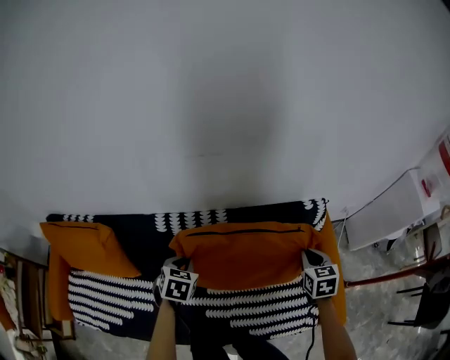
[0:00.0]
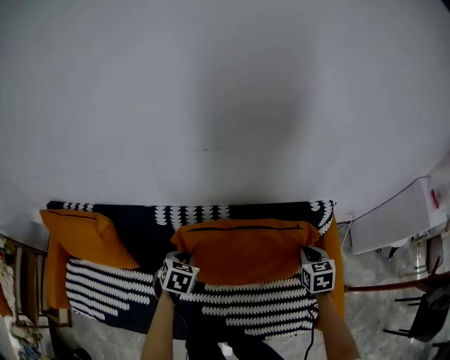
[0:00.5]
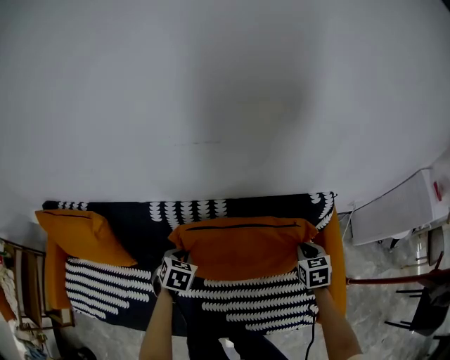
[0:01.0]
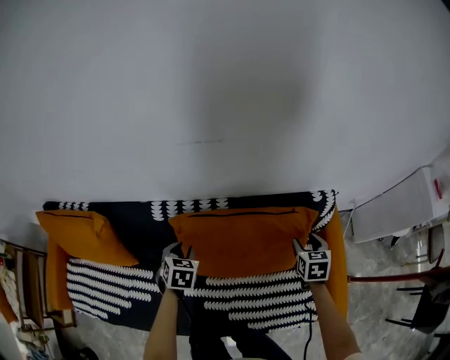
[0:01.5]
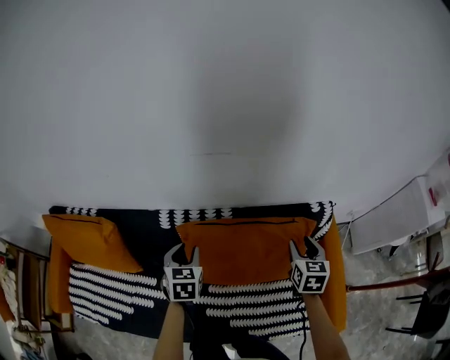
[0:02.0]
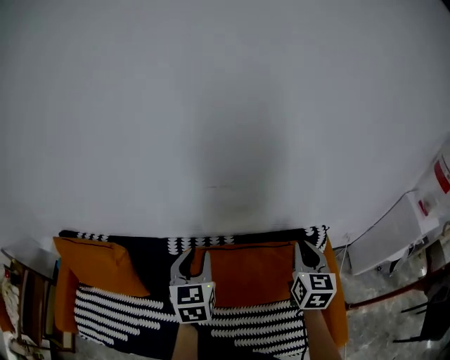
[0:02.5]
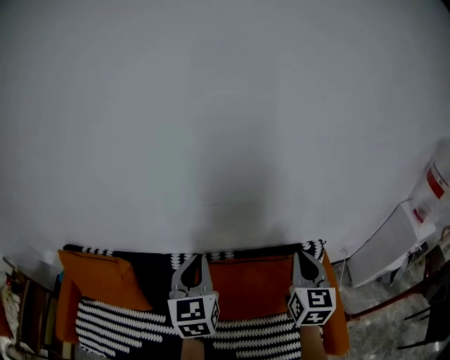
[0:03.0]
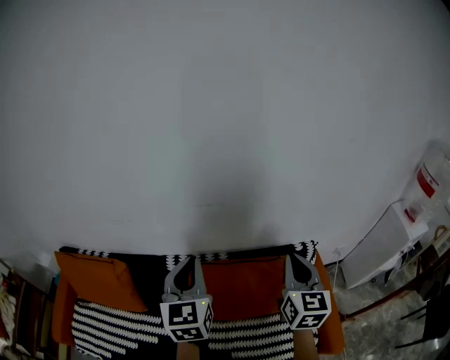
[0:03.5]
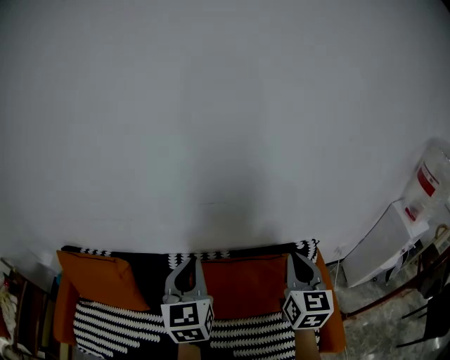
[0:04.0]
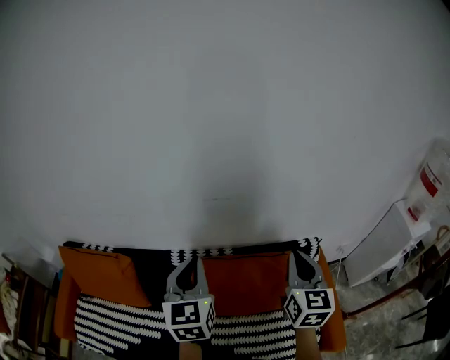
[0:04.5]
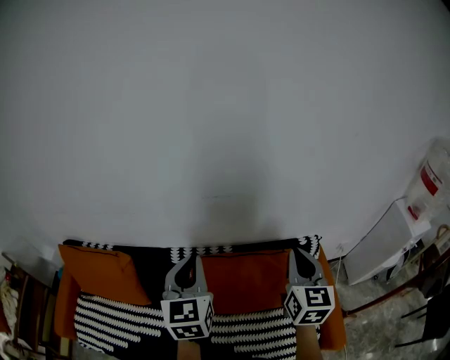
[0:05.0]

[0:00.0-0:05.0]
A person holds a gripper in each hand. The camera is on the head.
0:00.0 to 0:02.5: The right gripper goes roughly 20 cm upward and to the left, turns by about 30 degrees, and opens, then closes again. The left gripper moves upward, approximately 20 cm, and tilts its fingers approximately 30 degrees upward.
0:02.5 to 0:05.0: The grippers both shift upward and backward by roughly 15 cm. The left gripper closes up.

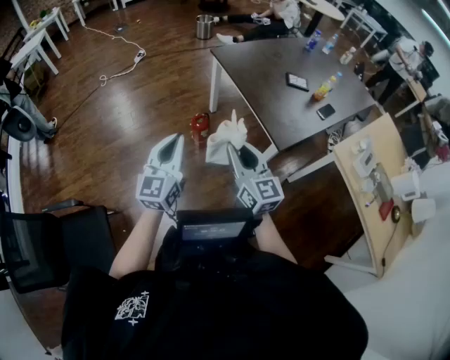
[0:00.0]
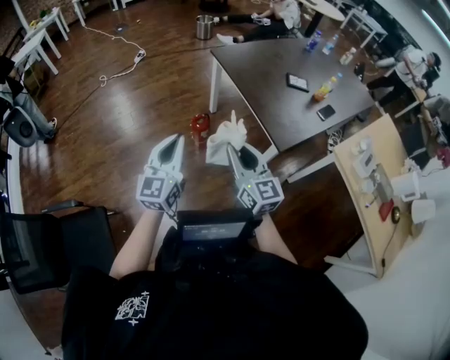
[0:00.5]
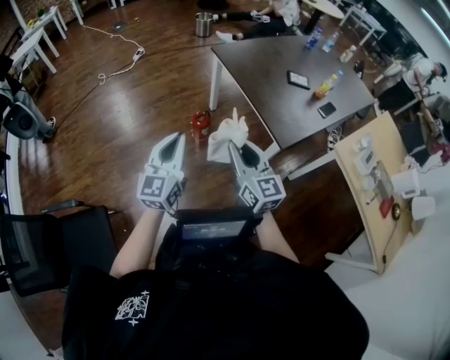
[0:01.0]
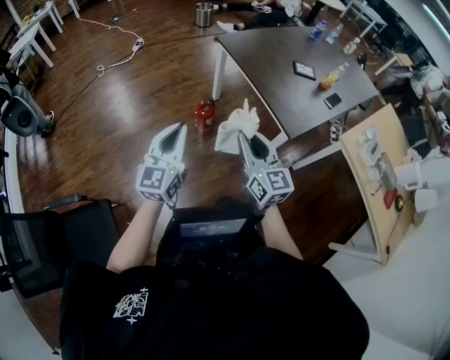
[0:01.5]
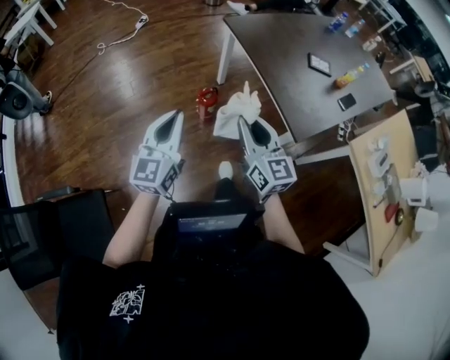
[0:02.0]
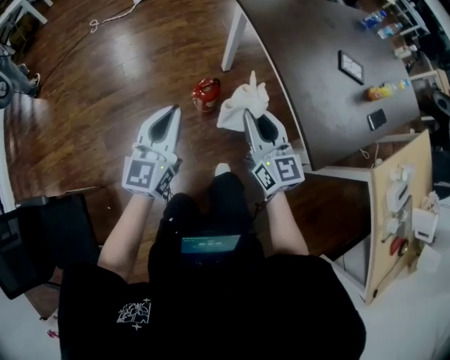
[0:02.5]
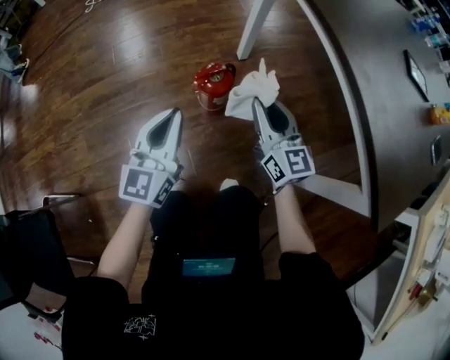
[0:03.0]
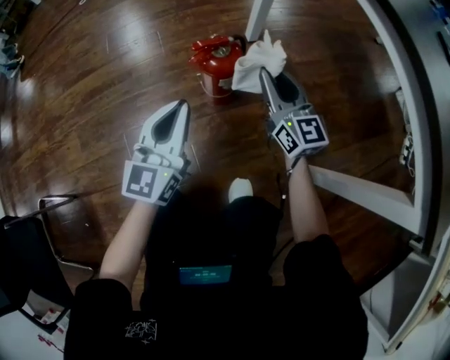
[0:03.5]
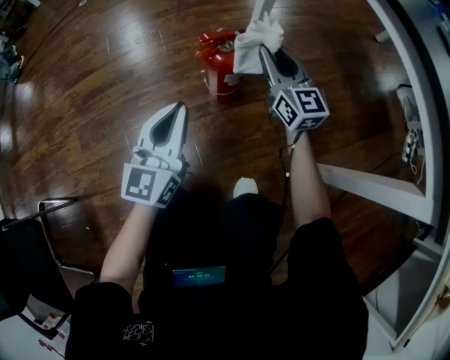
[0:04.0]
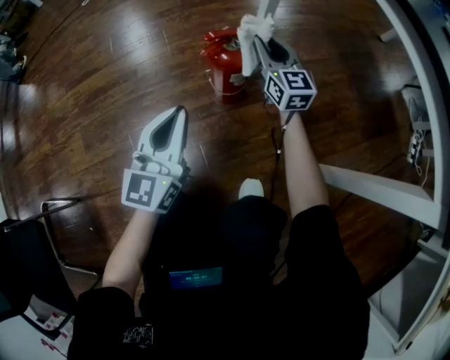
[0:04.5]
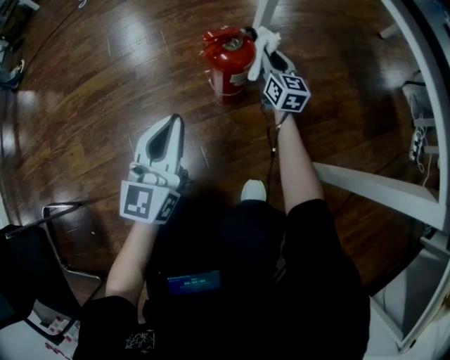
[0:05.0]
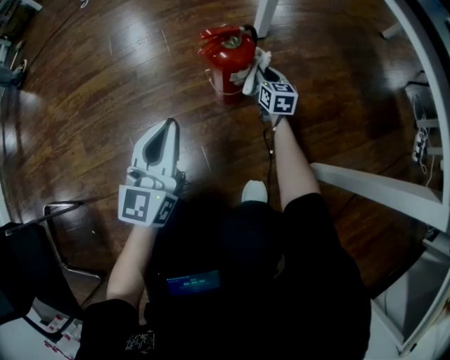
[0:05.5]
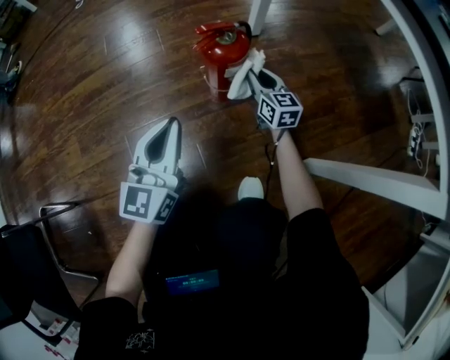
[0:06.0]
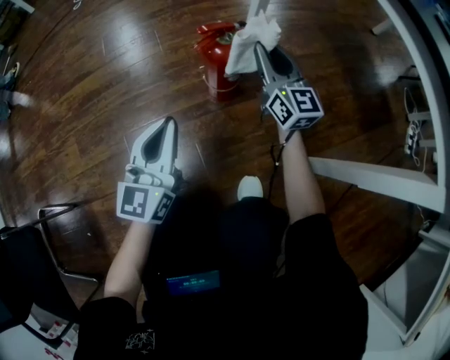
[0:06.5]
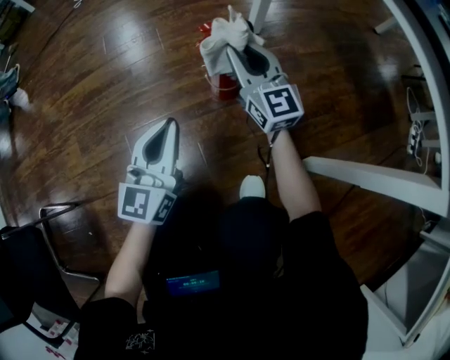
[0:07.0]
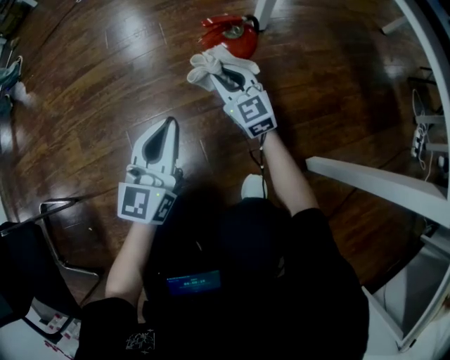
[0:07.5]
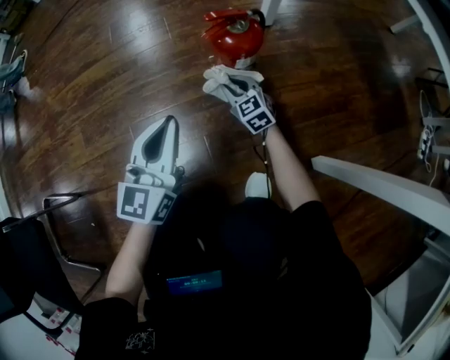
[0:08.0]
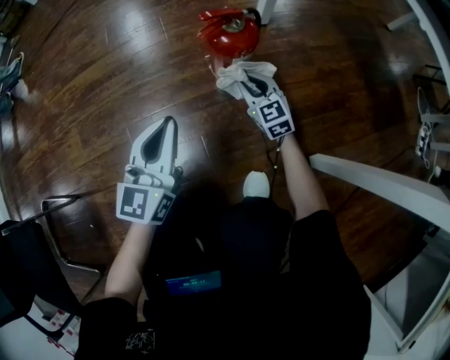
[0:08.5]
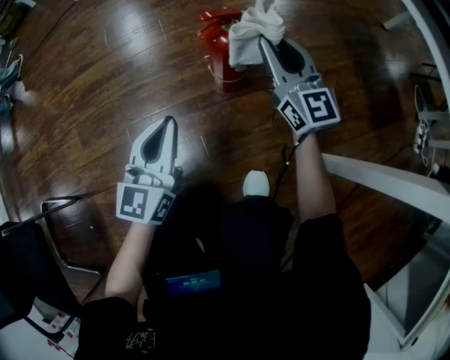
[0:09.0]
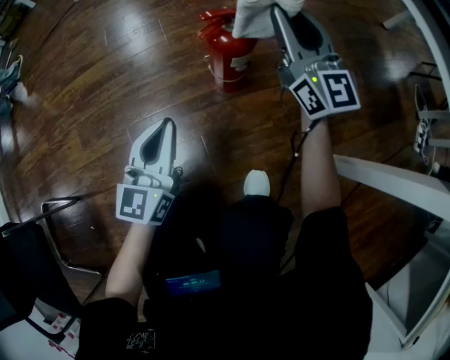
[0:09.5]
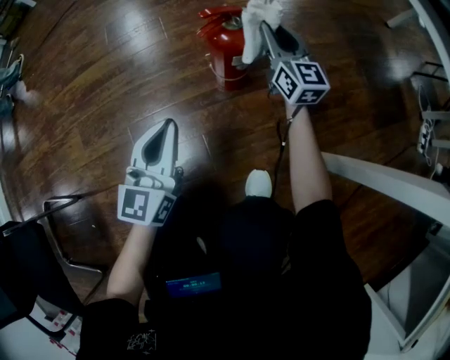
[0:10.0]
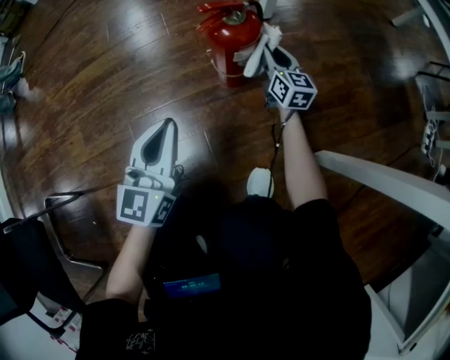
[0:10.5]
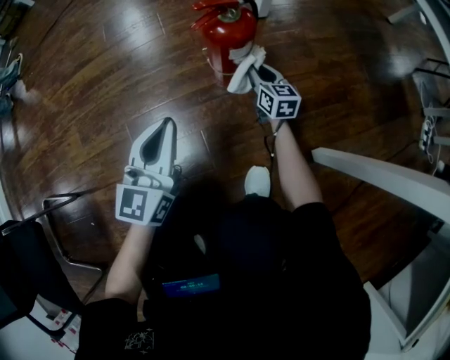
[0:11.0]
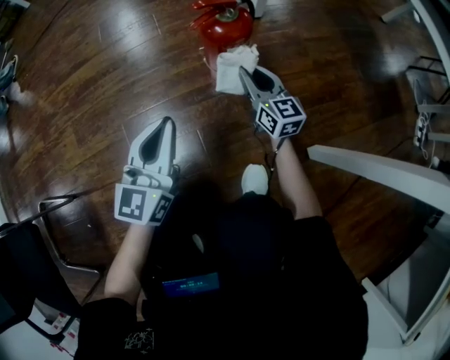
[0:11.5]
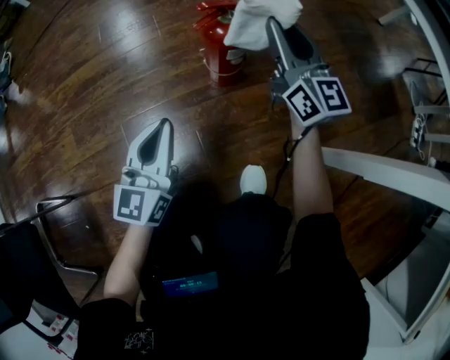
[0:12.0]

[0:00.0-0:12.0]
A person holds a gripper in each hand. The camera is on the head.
0:00.0 to 0:02.0: The right gripper goes approximately 10 cm forward, while the left gripper goes about 10 cm forward and downward.
0:02.0 to 0:04.0: The right gripper goes some 70 cm downward and forward. The left gripper goes some 60 cm downward.
0:04.0 to 0:06.0: The right gripper moves downward, about 20 cm.
0:06.0 to 0:08.0: The right gripper is displaced to the left by approximately 10 cm, travels upward and back again, approximately 15 cm each way, and swivels about 30 degrees.
0:08.0 to 0:10.0: The right gripper heads upward and to the right, covering roughly 25 cm, and points its fingers about 30 degrees further upward.
0:10.0 to 0:12.0: The right gripper shifts approximately 5 cm backward, and reaches roughly 20 cm downward, then returns.

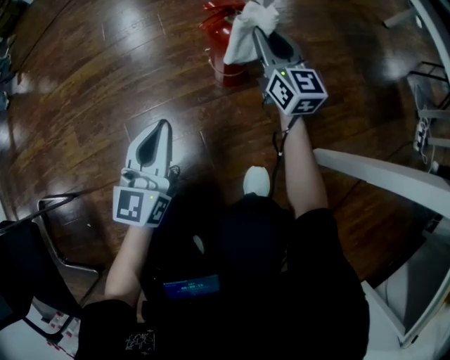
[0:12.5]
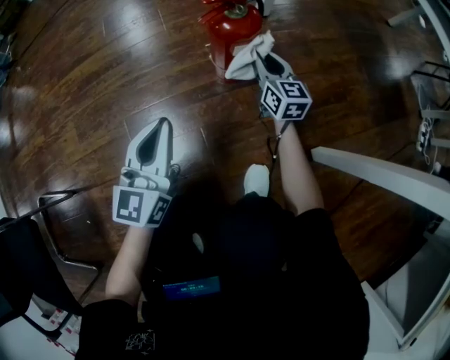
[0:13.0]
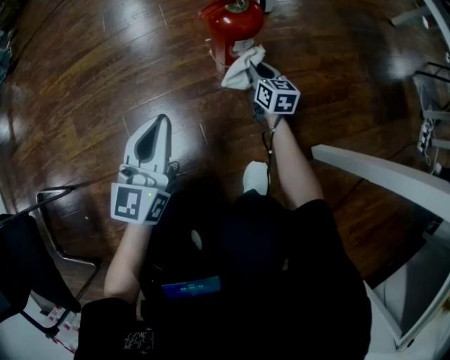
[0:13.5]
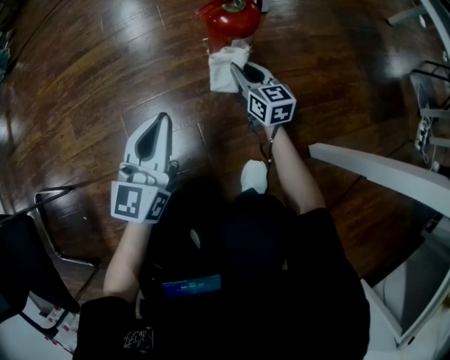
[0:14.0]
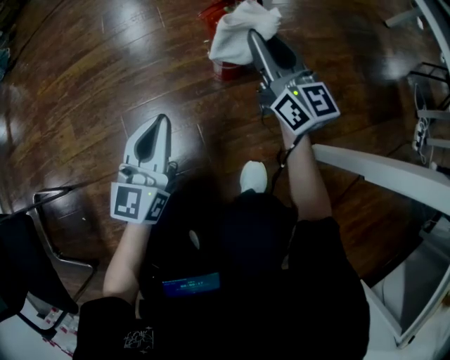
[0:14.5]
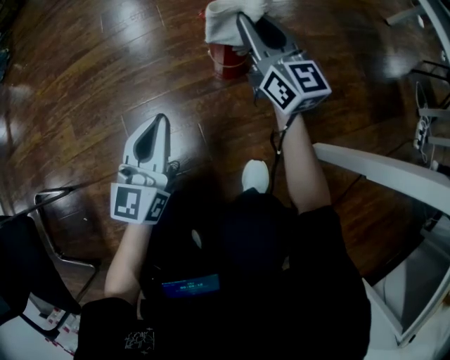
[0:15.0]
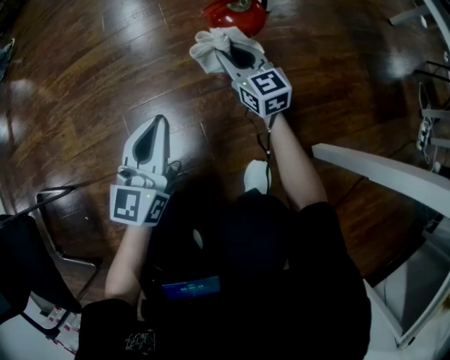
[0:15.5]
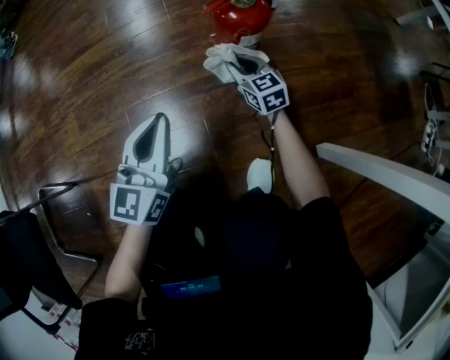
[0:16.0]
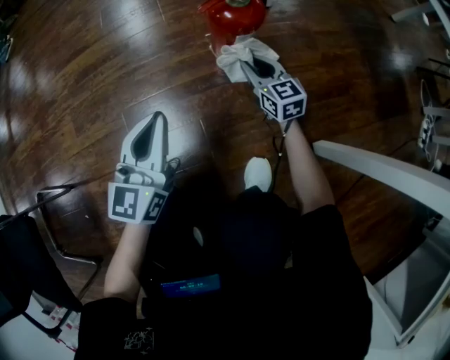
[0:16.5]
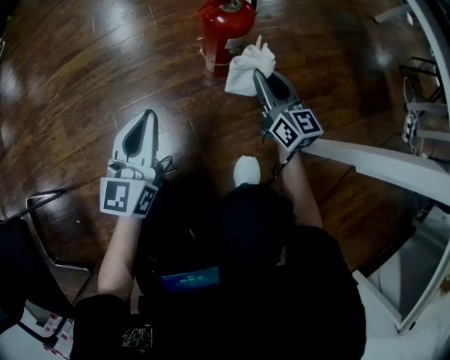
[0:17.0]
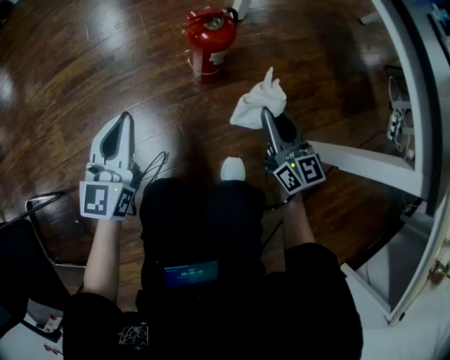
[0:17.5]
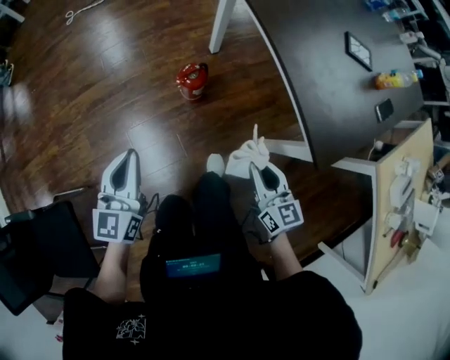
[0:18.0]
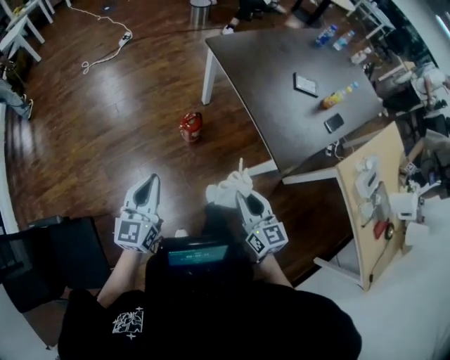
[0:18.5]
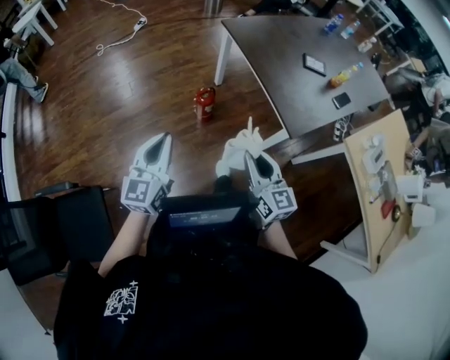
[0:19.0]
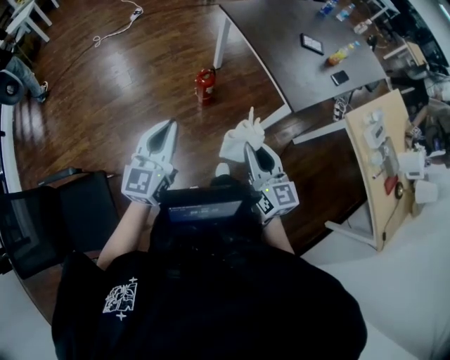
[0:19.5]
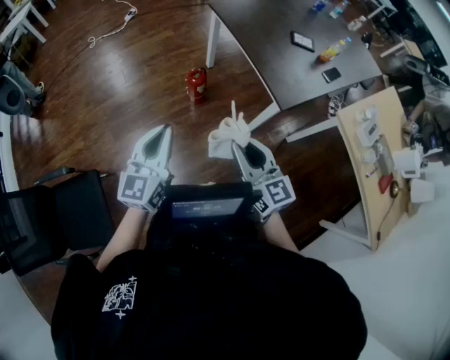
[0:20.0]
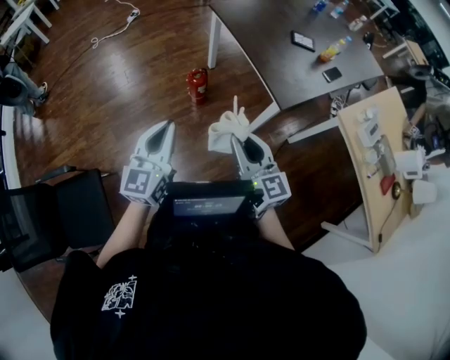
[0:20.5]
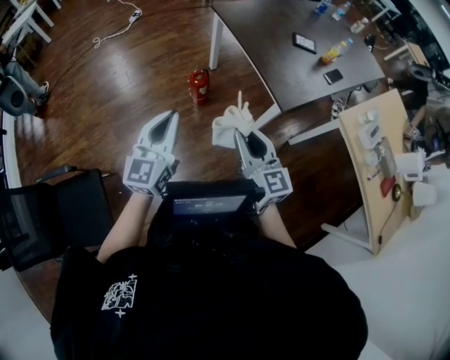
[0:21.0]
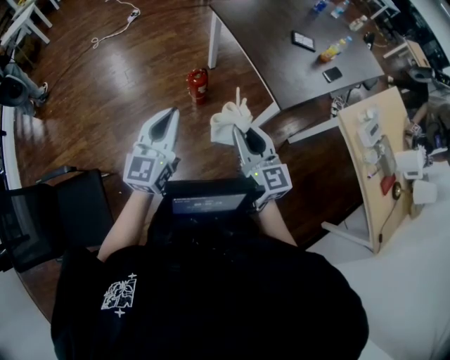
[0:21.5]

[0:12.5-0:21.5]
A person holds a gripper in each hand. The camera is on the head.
0:12.5 to 0:14.5: The right gripper is displaced backward by roughly 5 cm, and reaches some 20 cm downward, then returns.
0:14.5 to 0:17.0: The right gripper heads downward and backward, covering about 15 cm.
0:17.0 to 0:19.5: The right gripper moves upward and backward, roughly 80 cm, while the left gripper moves upward, roughly 70 cm.
0:19.5 to 0:21.5: The left gripper goes some 5 cm to the right; the right gripper ends up about 5 cm from where it was.

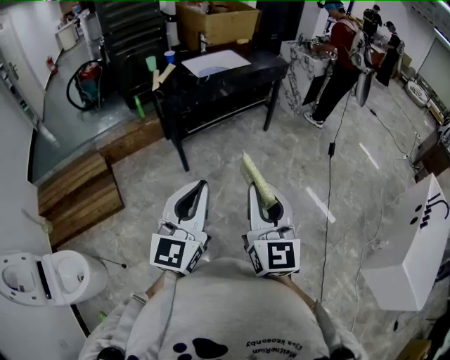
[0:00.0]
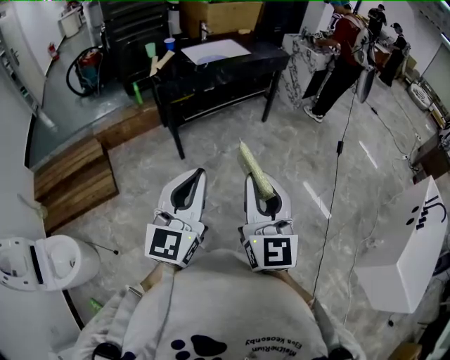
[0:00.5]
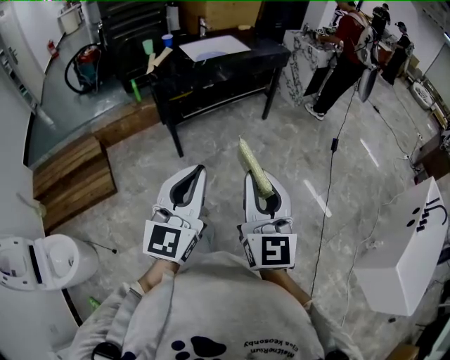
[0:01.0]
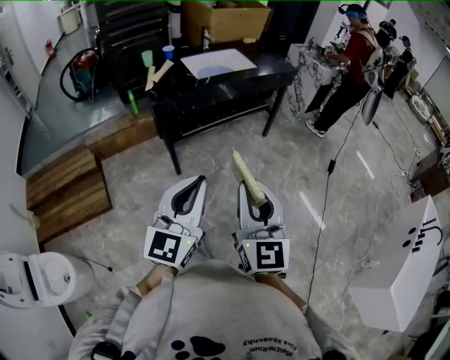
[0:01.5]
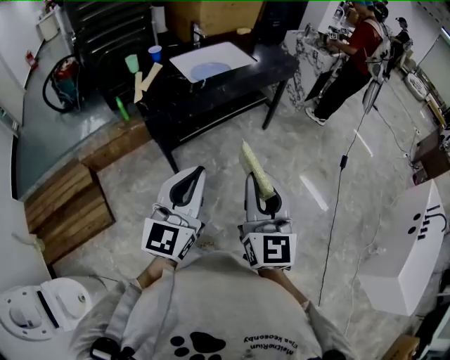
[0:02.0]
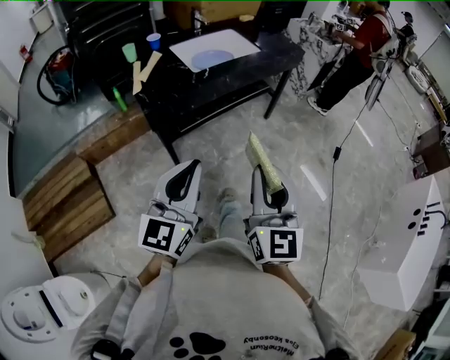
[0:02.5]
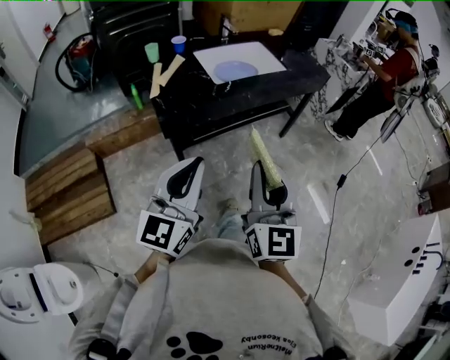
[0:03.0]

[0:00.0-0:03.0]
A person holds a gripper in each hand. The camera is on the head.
0:00.0 to 0:01.5: The grippers both shift forward by some 15 cm.
0:01.5 to 0:03.0: The left gripper travels forward and to the left by roughly 25 cm; the right gripper goes some 25 cm forward.
